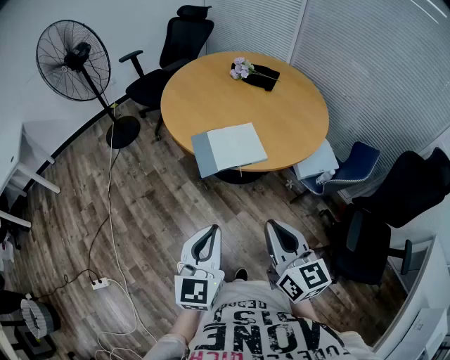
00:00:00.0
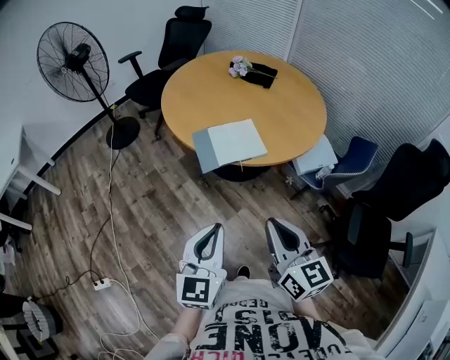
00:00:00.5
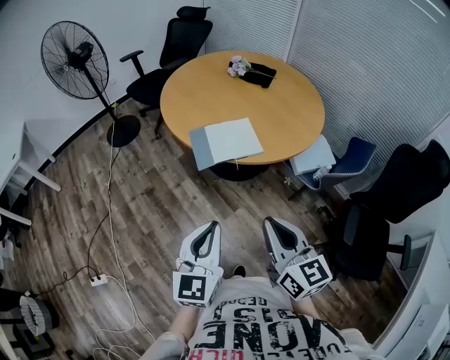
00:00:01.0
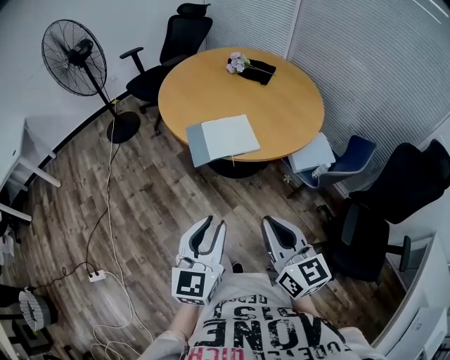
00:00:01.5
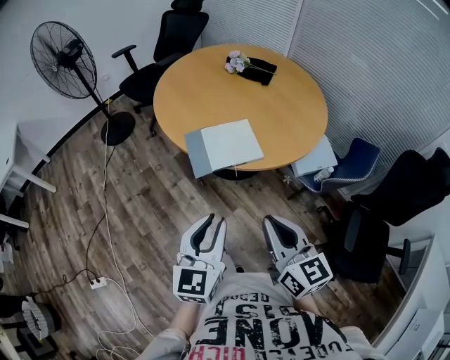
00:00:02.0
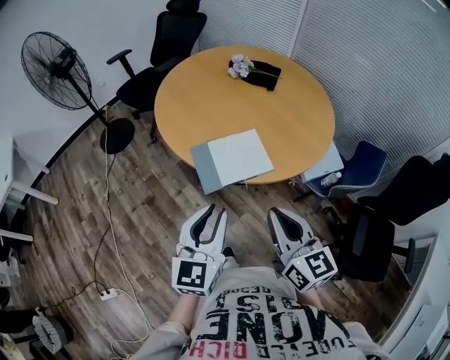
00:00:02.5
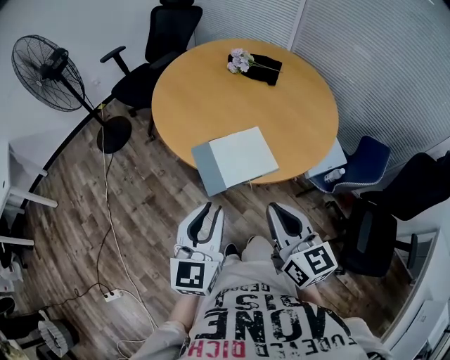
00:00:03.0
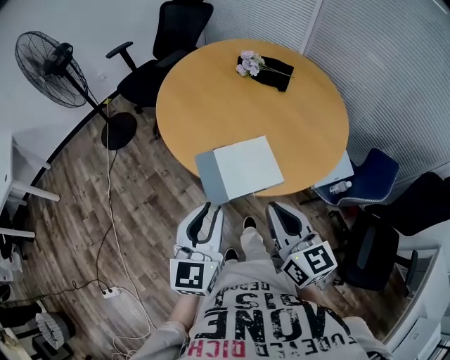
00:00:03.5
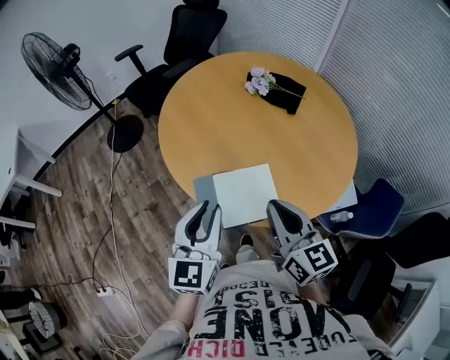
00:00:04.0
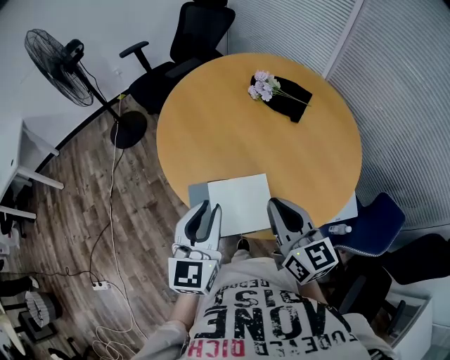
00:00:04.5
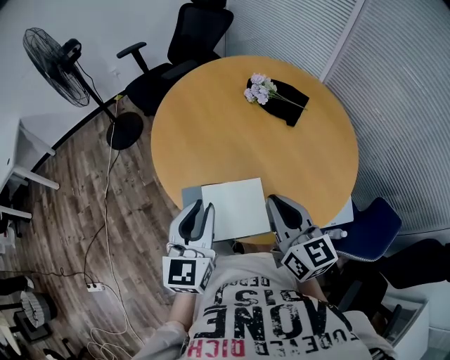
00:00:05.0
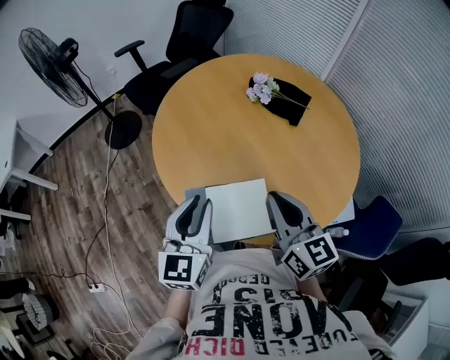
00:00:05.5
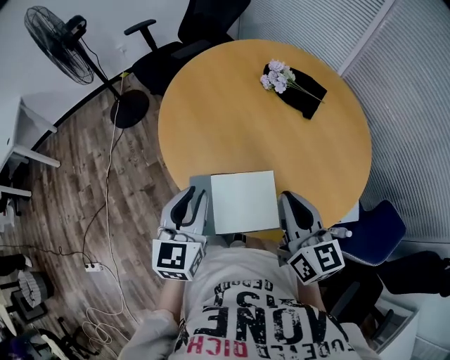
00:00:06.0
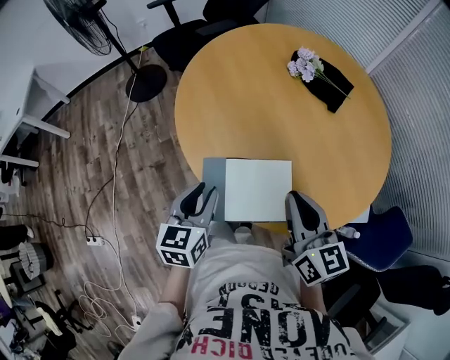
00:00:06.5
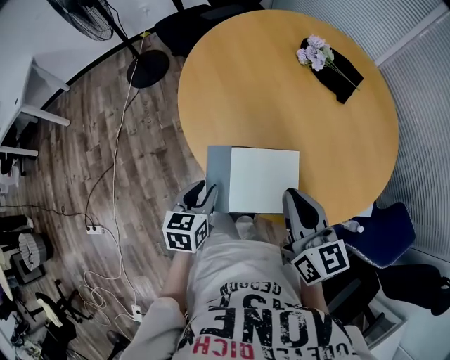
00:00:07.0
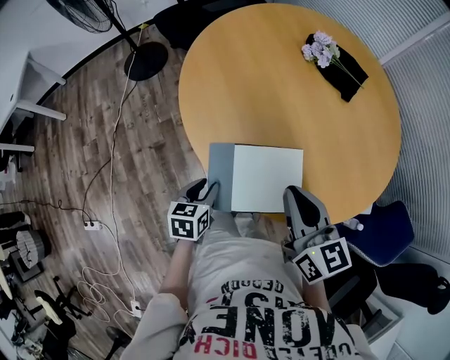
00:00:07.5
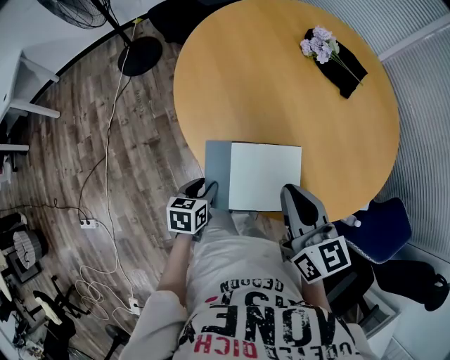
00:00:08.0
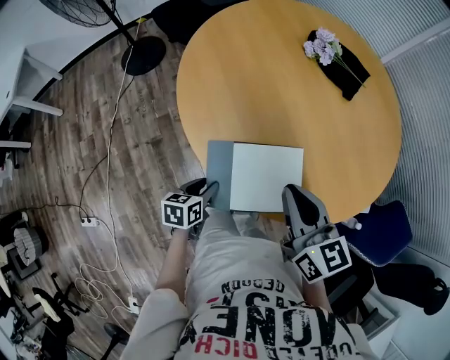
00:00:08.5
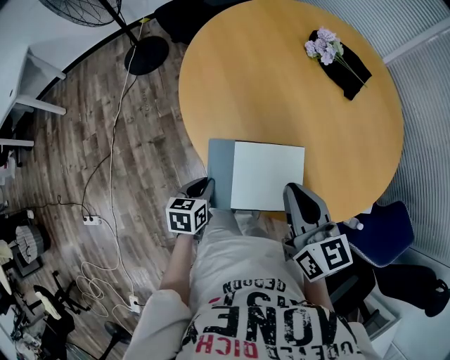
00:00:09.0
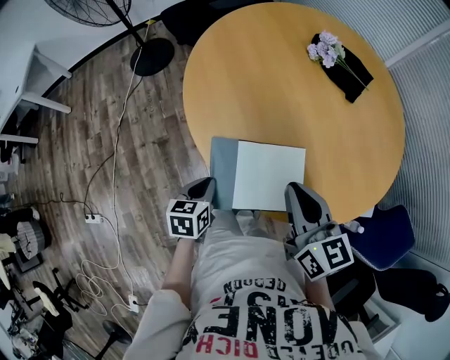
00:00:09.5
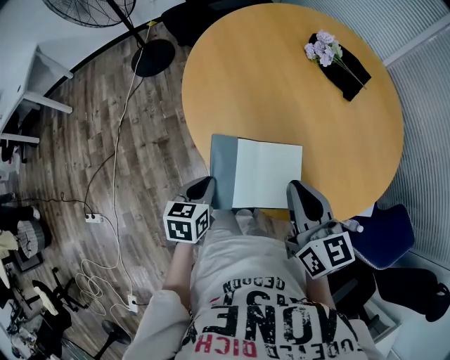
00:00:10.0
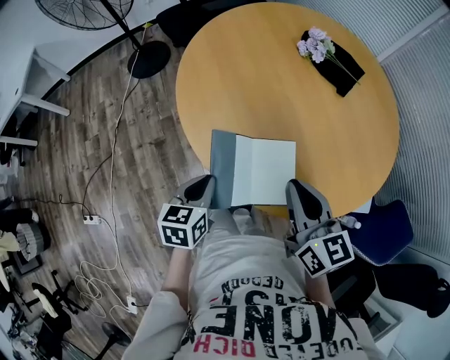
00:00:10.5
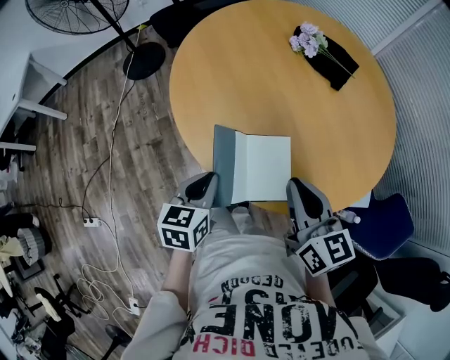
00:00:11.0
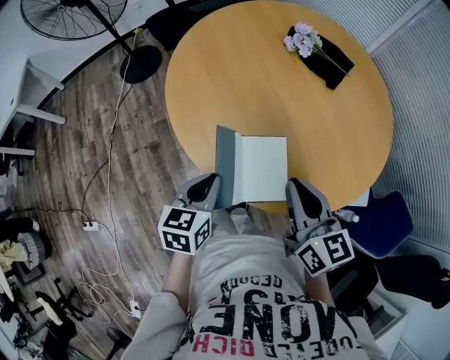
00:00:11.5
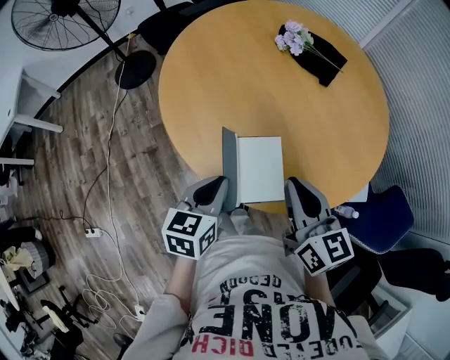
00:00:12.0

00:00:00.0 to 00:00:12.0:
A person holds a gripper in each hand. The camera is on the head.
00:00:00.0 to 00:00:02.0: The left gripper opens its fingers.
00:00:02.0 to 00:00:04.0: Both grippers move forward, approximately 30 cm.
00:00:04.0 to 00:00:06.0: The two grippers go roughly 10 cm forward.
00:00:06.0 to 00:00:08.0: The right gripper shifts about 10 cm to the left and downward. The left gripper is displaced downward by roughly 25 cm, and angles its fingers downward, by approximately 30 degrees.
00:00:08.0 to 00:00:10.0: The left gripper moves upward, roughly 10 cm, and closes up.
00:00:10.0 to 00:00:12.0: The right gripper moves to the right, about 5 cm. The left gripper is displaced to the right and upward by about 15 cm.

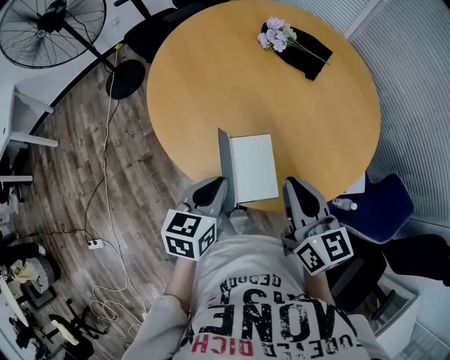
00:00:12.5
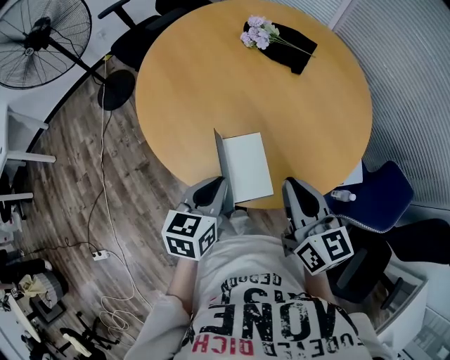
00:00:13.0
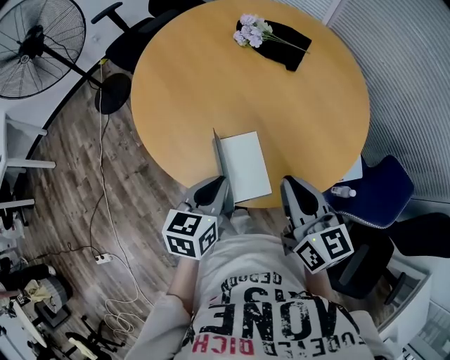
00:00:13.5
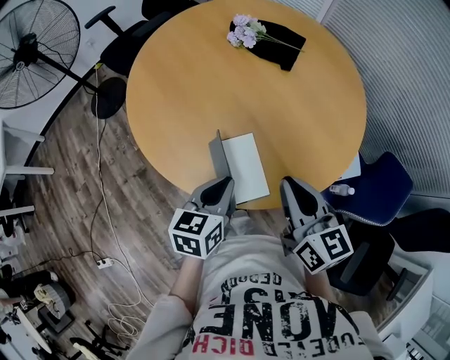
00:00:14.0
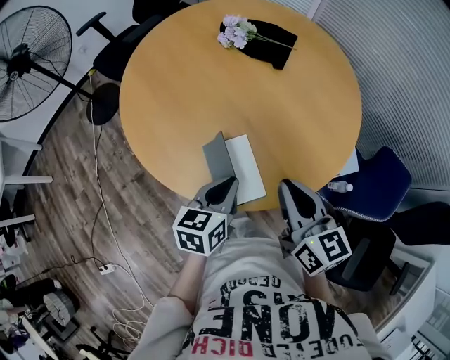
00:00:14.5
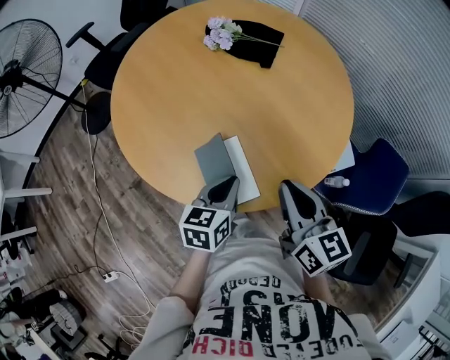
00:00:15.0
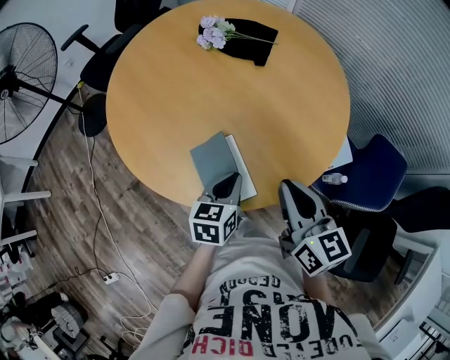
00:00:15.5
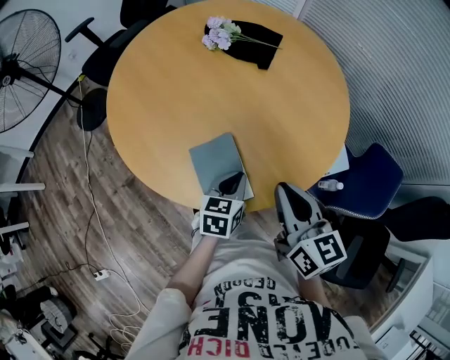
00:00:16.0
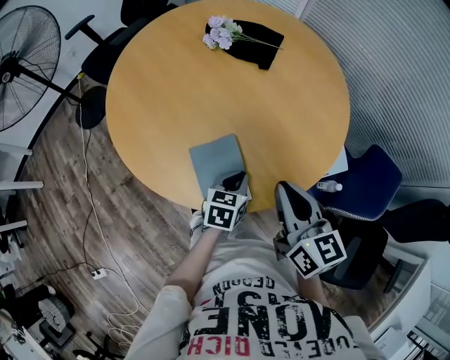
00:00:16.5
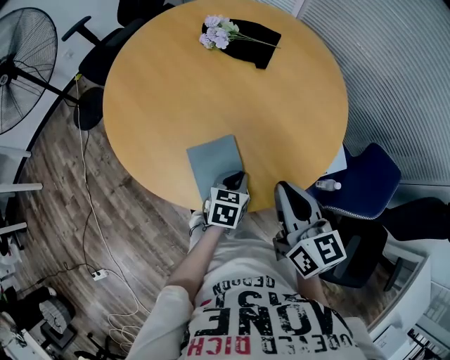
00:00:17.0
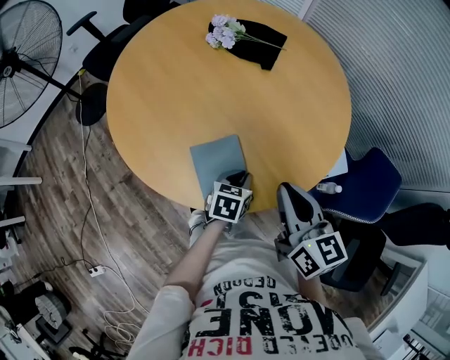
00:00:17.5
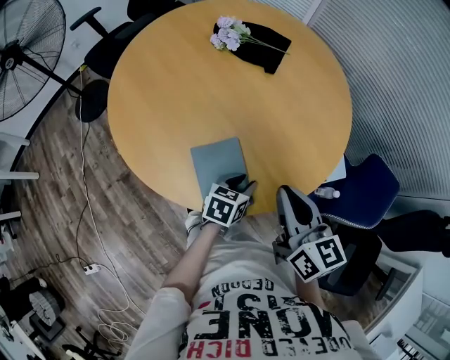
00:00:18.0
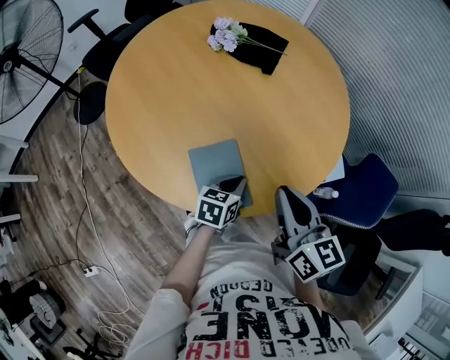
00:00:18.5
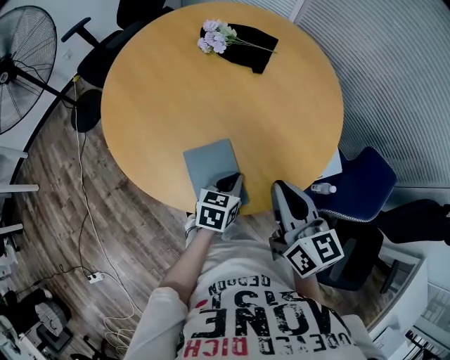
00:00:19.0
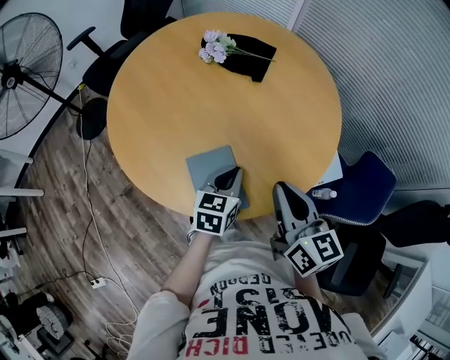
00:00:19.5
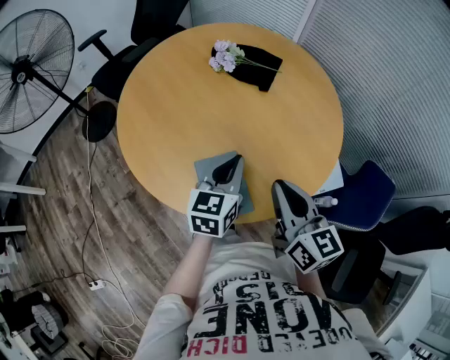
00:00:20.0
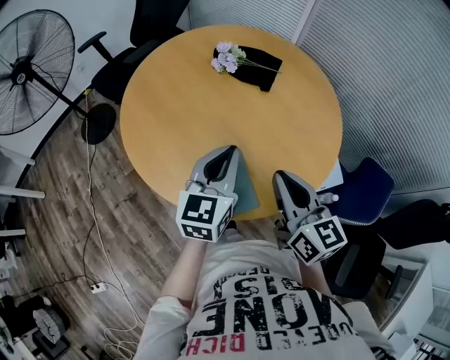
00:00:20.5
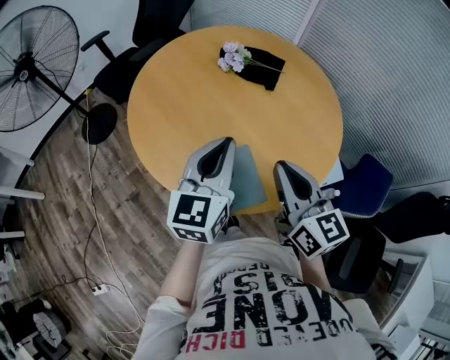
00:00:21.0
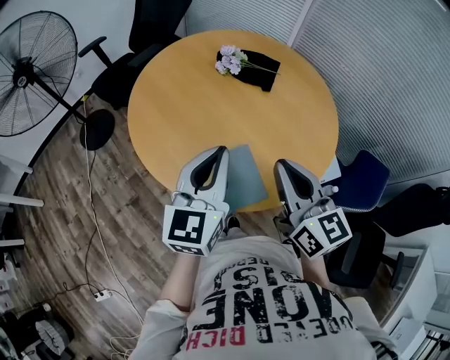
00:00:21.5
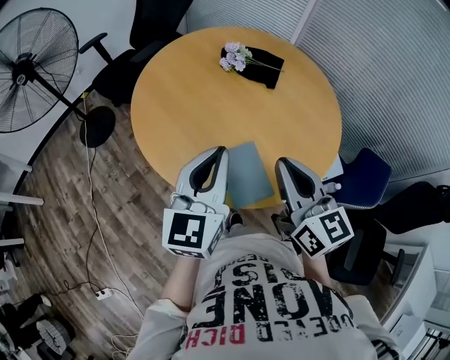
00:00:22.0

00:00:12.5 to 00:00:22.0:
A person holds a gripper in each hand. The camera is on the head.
00:00:12.5 to 00:00:14.5: The left gripper travels to the right by about 10 cm.
00:00:14.5 to 00:00:16.5: The left gripper shifts approximately 15 cm downward and to the right.
00:00:16.5 to 00:00:18.0: The left gripper opens its fingers.
00:00:18.0 to 00:00:20.0: The left gripper moves upward, approximately 20 cm, rotates approximately 30 degrees, and closes its fingers.
00:00:20.0 to 00:00:22.0: The left gripper heads upward, to the left and backward, covering approximately 20 cm; the right gripper moves to the left and upward, some 10 cm.

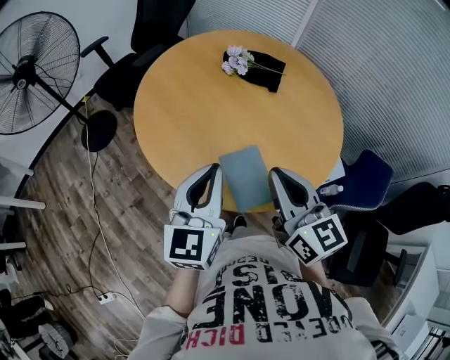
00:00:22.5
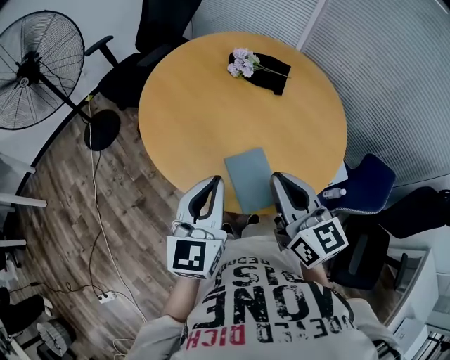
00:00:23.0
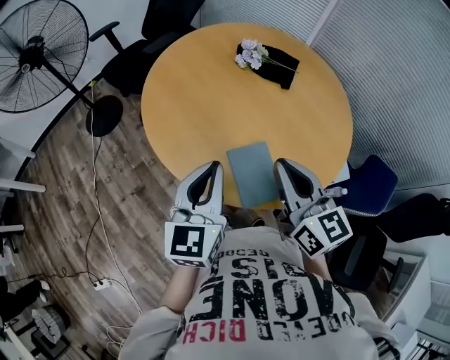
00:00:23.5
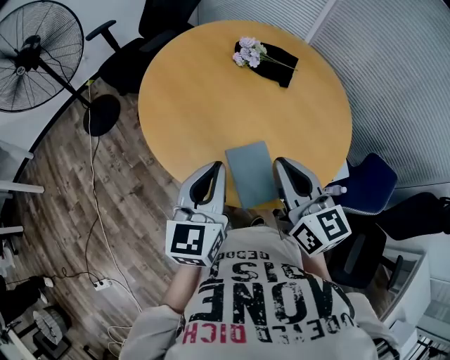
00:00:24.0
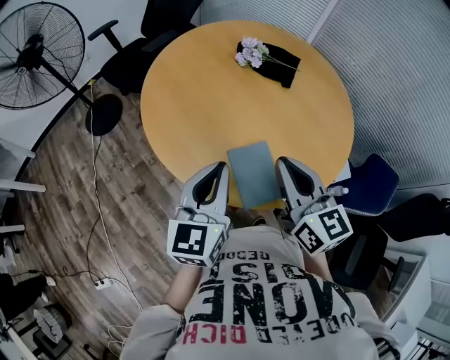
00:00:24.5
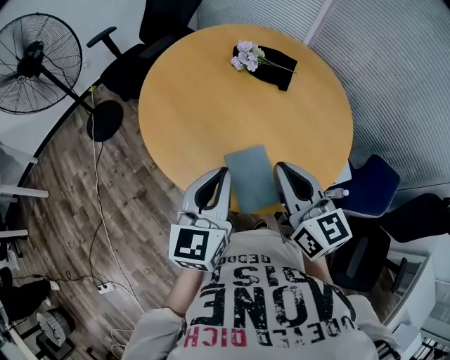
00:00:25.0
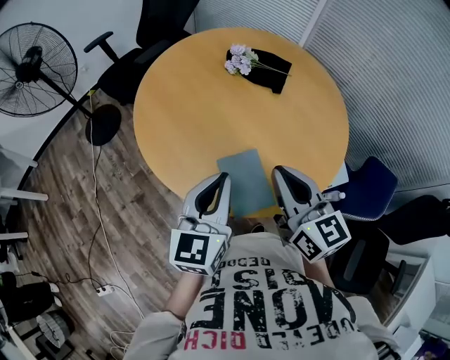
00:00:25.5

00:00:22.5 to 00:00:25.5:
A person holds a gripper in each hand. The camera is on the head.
00:00:22.5 to 00:00:24.0: The grippers make only small movements.
00:00:24.0 to 00:00:25.5: The left gripper heads to the right, covering roughly 5 cm.

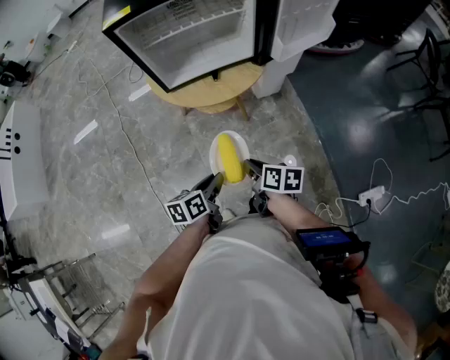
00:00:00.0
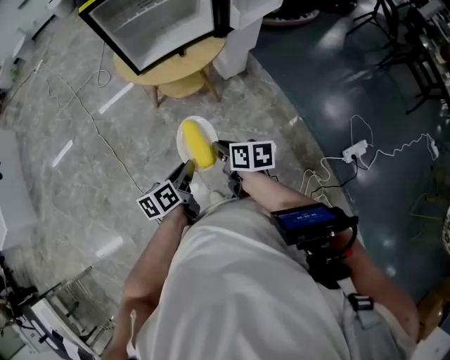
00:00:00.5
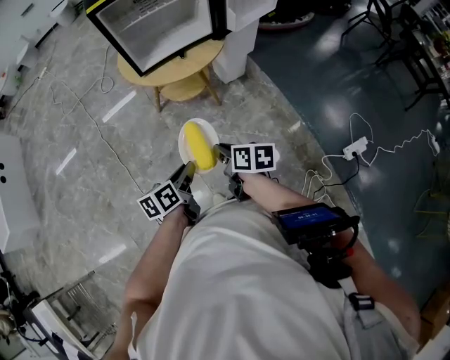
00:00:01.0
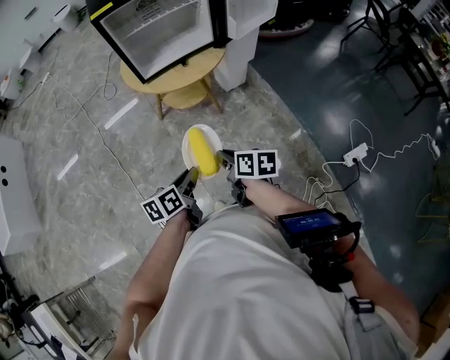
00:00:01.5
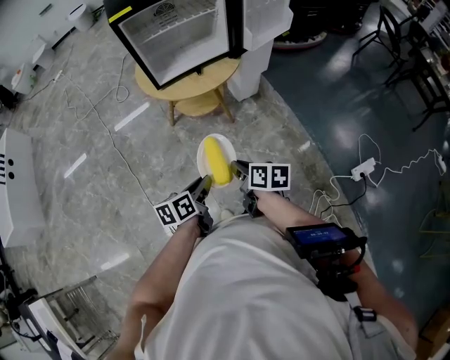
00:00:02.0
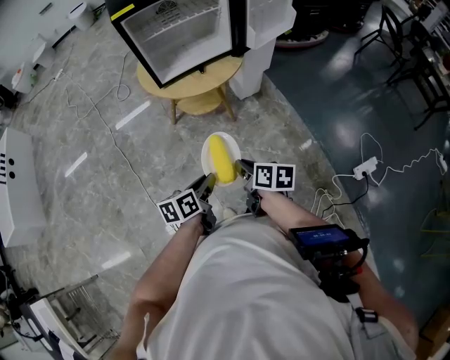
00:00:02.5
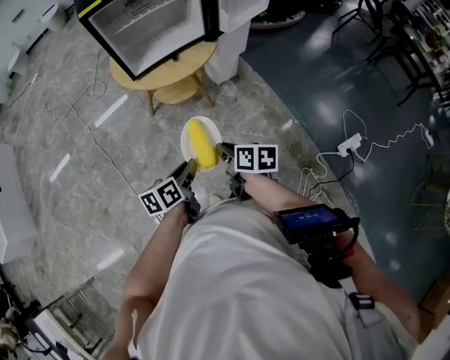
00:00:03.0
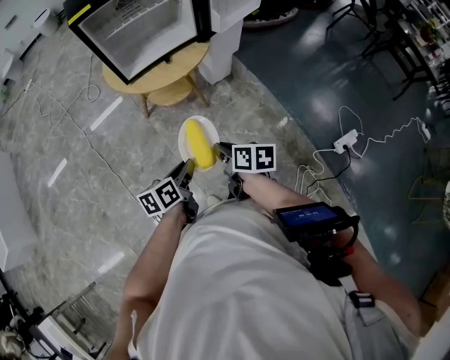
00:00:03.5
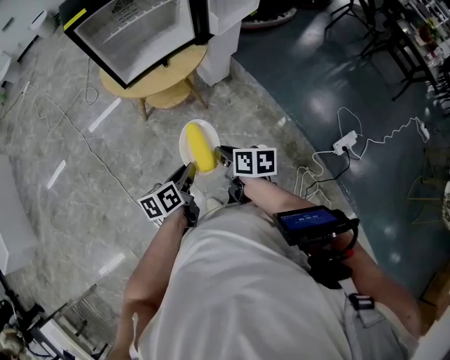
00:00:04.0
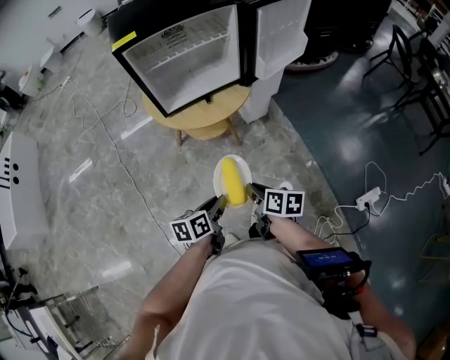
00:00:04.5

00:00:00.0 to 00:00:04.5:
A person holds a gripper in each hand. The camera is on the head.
00:00:00.0 to 00:00:02.0: Both grippers travel together backward and to the left, roughly 10 cm.
00:00:02.0 to 00:00:04.5: The two grippers go about 5 cm forward.
